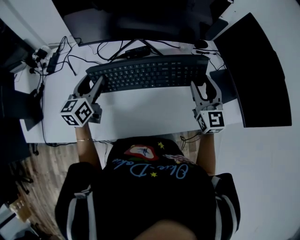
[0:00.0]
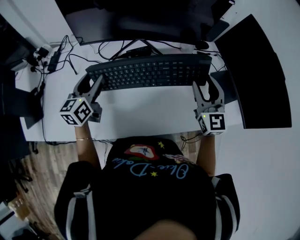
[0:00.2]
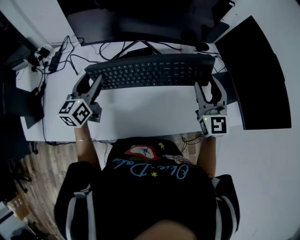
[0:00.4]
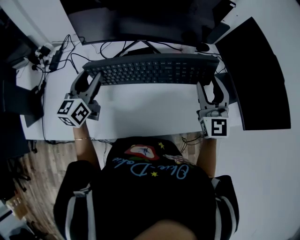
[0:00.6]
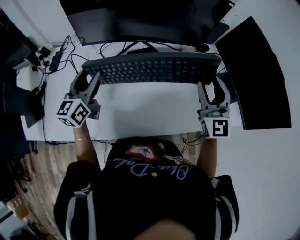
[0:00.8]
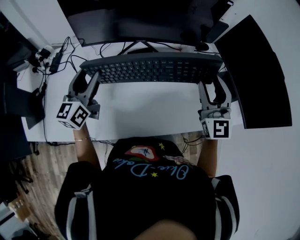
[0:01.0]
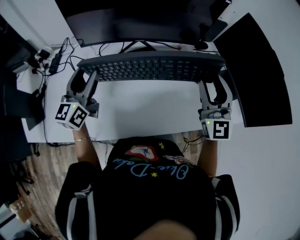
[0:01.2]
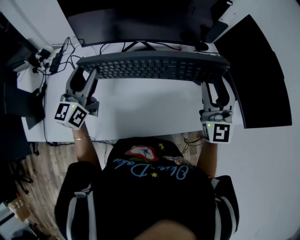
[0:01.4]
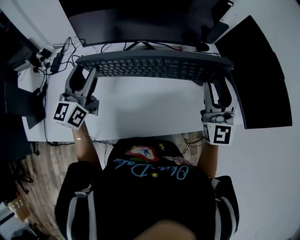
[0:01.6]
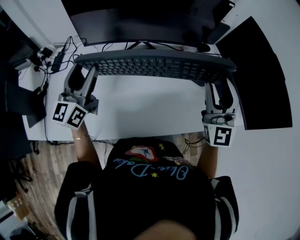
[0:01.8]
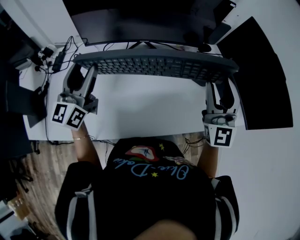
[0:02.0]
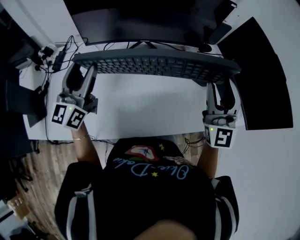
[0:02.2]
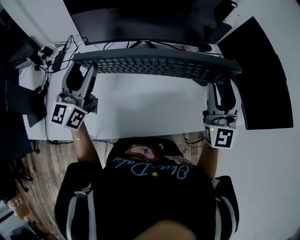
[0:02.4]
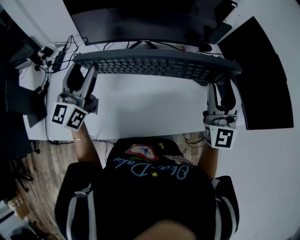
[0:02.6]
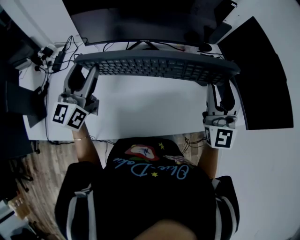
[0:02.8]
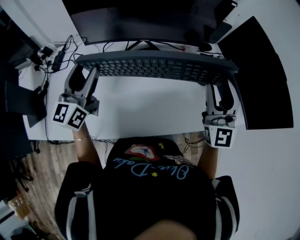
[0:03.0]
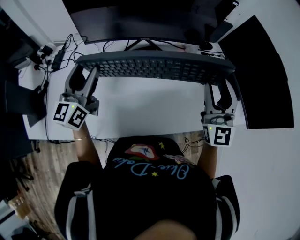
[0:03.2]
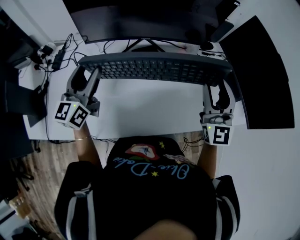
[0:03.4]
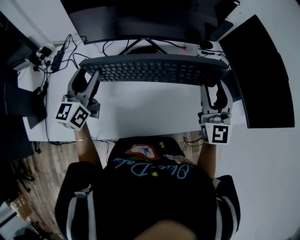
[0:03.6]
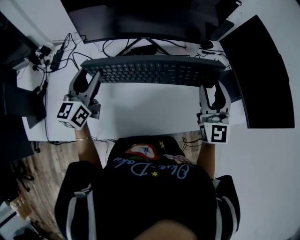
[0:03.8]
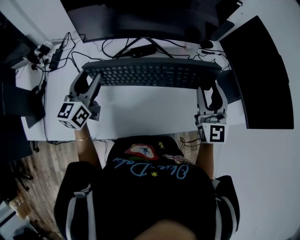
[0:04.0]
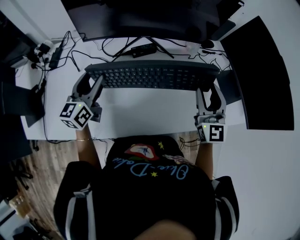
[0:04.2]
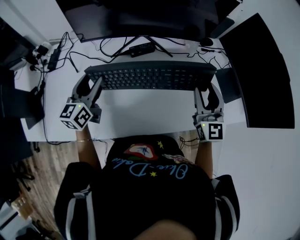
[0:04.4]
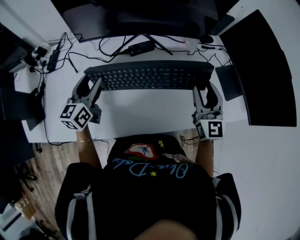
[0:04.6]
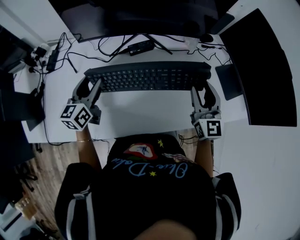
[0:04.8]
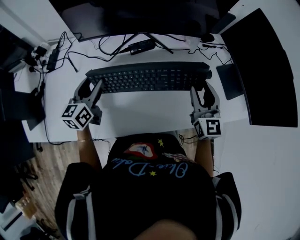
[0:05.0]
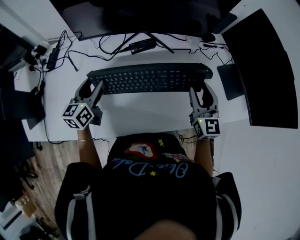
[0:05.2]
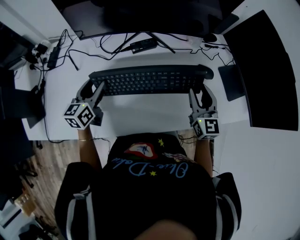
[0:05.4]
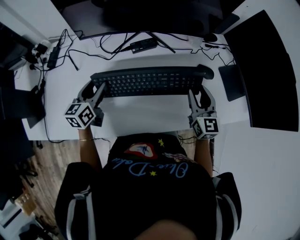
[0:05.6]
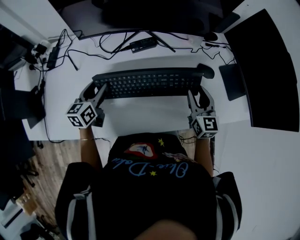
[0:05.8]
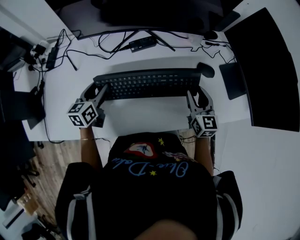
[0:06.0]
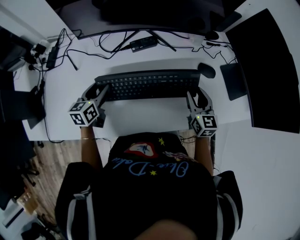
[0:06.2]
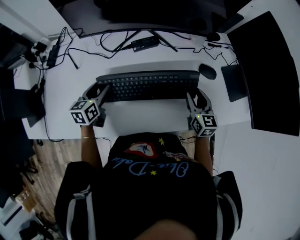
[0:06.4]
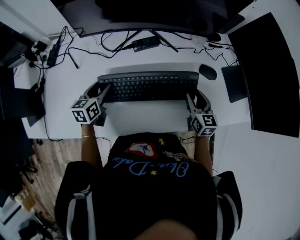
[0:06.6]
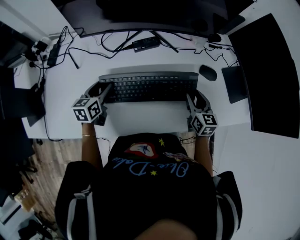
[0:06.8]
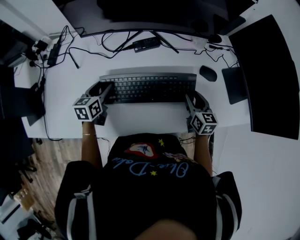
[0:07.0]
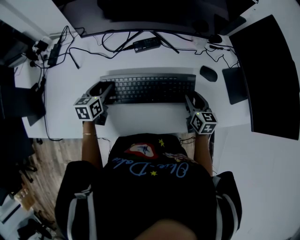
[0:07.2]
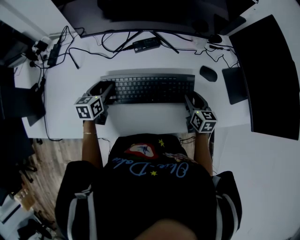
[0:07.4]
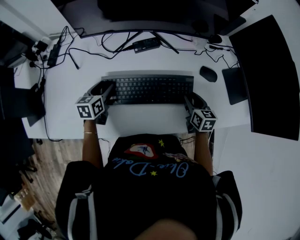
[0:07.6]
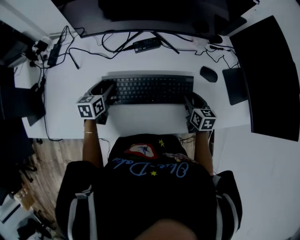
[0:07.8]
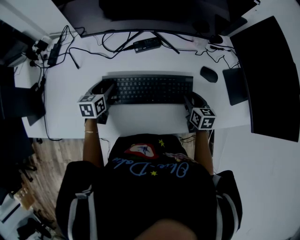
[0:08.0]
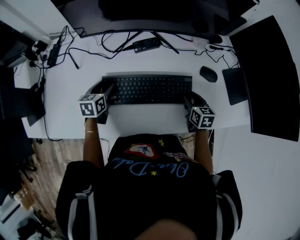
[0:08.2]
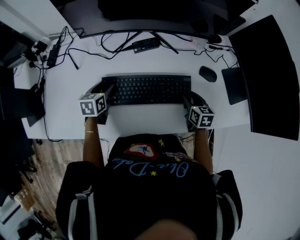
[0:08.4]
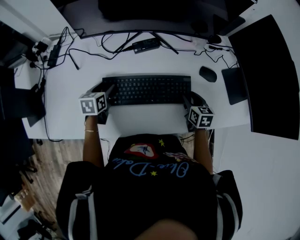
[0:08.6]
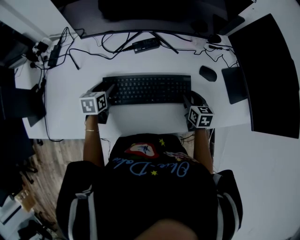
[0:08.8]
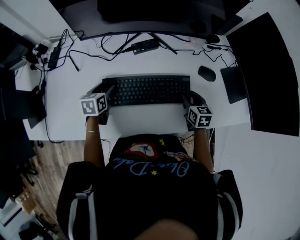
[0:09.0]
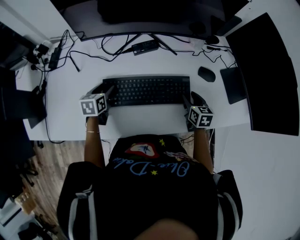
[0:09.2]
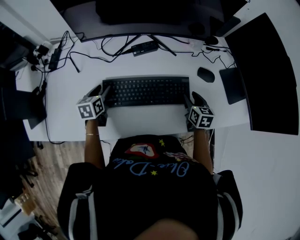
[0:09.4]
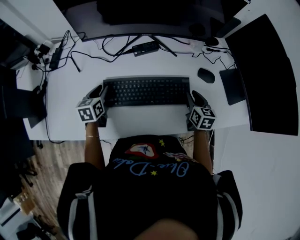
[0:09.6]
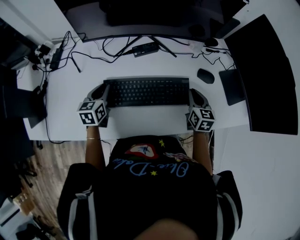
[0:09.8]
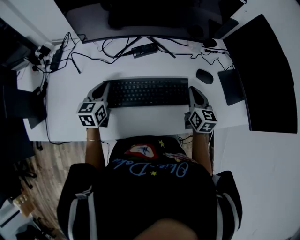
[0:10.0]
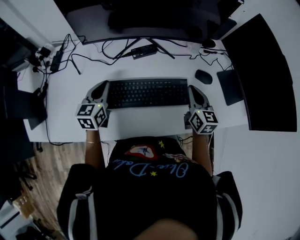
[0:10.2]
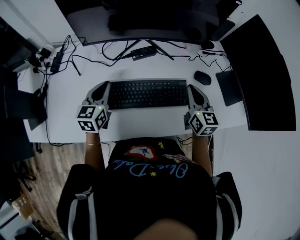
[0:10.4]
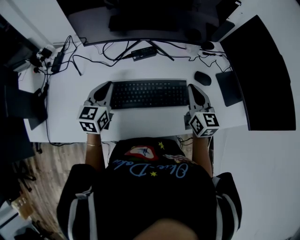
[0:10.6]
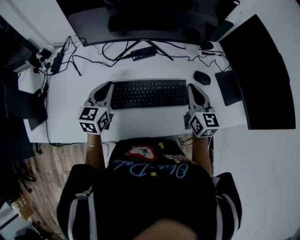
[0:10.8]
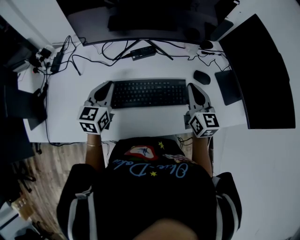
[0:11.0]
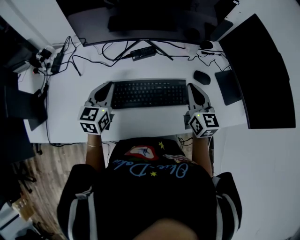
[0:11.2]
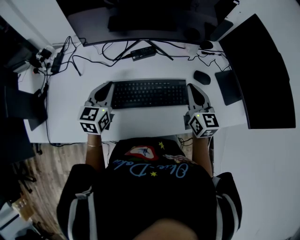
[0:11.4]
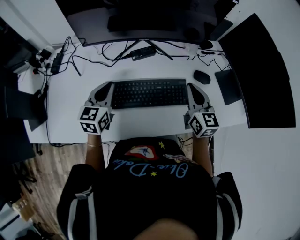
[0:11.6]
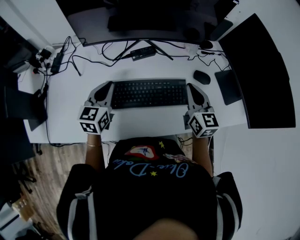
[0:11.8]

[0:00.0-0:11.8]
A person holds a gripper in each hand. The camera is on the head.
0:00.0 to 0:01.4: The grippers both shift upward by some 10 cm. The left gripper rotates some 20 degrees. Meanwhile the right gripper rotates approximately 20 degrees.
0:01.4 to 0:03.0: There are only small adjustments of the grippers.
0:03.0 to 0:04.4: Both grippers travel together downward, about 10 cm.
0:04.4 to 0:06.0: The grippers both shift downward by some 10 cm. The right gripper swivels some 20 degrees.
0:06.0 to 0:07.4: The left gripper ends up approximately 5 cm from where it was. Meanwhile the right gripper shifts approximately 10 cm downward, and rotates about 20 degrees.
0:07.4 to 0:08.8: There are only small adjustments of the grippers.
0:08.8 to 0:10.4: Both grippers travel together upward, approximately 15 cm. The left gripper turns by some 30 degrees, and closes up. Meanwhile the right gripper changes its angle by approximately 30 degrees, and closes up.
0:10.4 to 0:11.8: The grippers stay close to where they were, moving slightly.

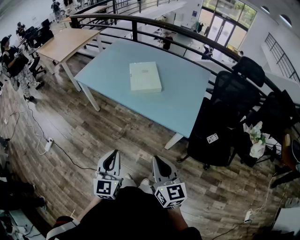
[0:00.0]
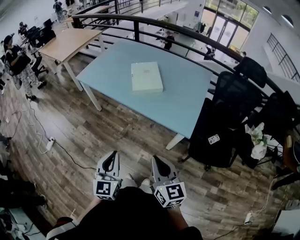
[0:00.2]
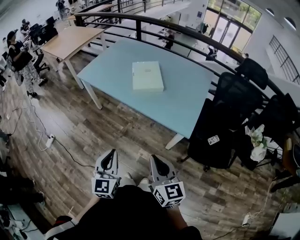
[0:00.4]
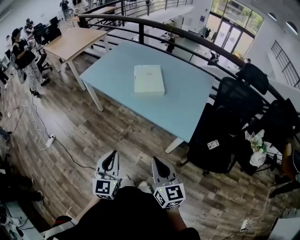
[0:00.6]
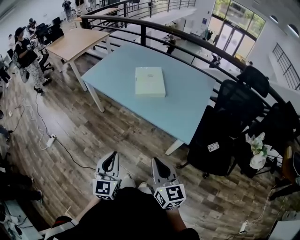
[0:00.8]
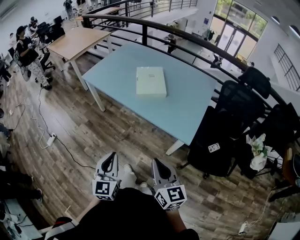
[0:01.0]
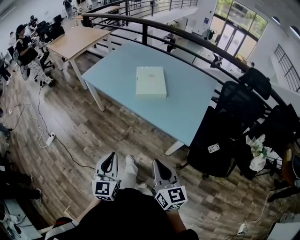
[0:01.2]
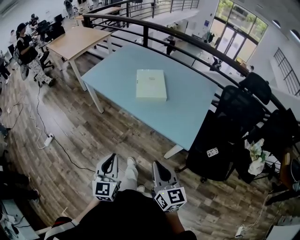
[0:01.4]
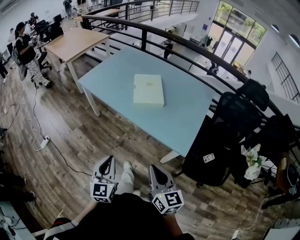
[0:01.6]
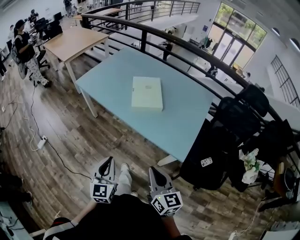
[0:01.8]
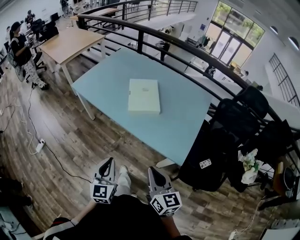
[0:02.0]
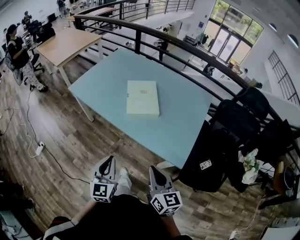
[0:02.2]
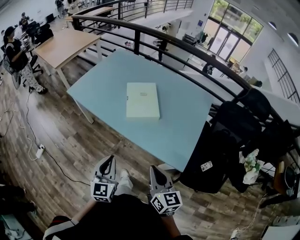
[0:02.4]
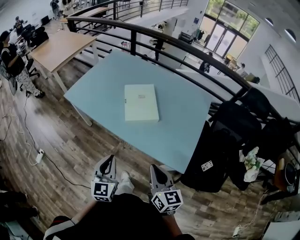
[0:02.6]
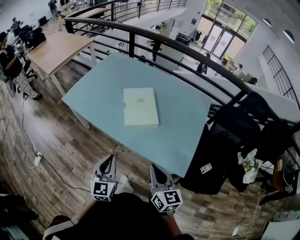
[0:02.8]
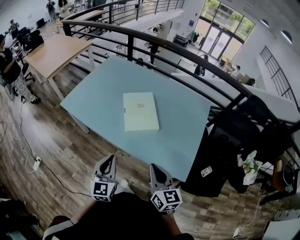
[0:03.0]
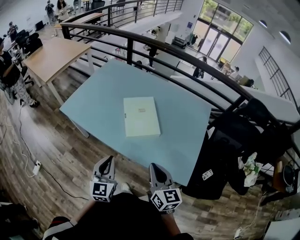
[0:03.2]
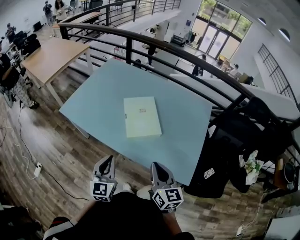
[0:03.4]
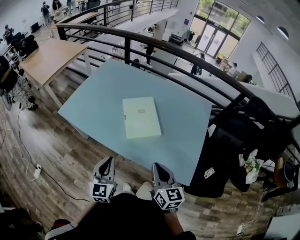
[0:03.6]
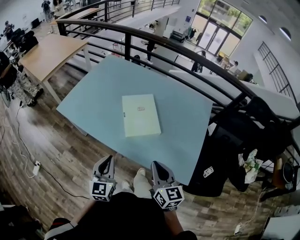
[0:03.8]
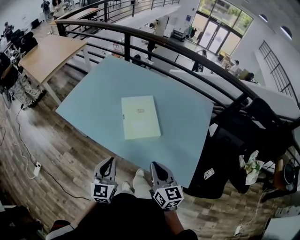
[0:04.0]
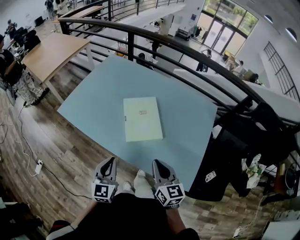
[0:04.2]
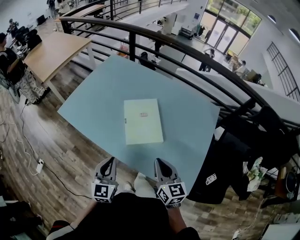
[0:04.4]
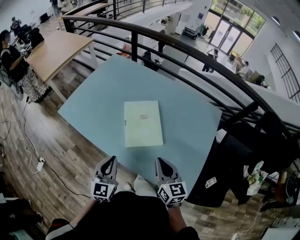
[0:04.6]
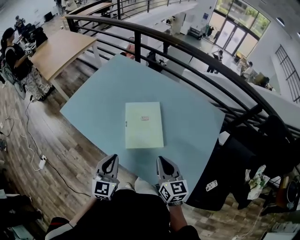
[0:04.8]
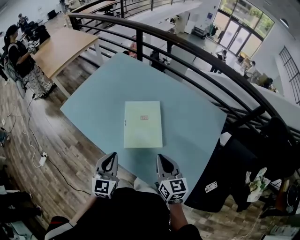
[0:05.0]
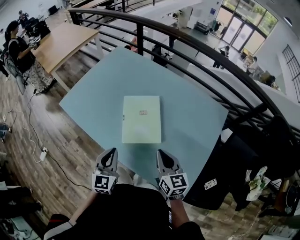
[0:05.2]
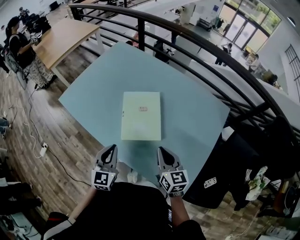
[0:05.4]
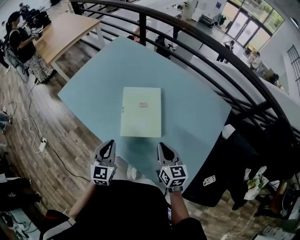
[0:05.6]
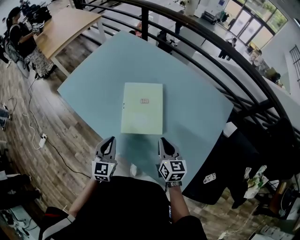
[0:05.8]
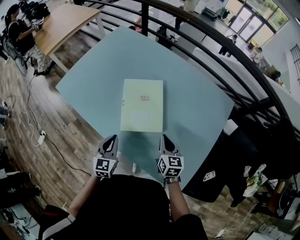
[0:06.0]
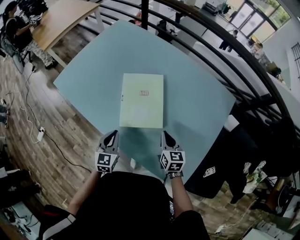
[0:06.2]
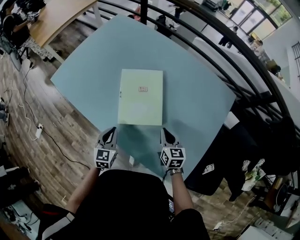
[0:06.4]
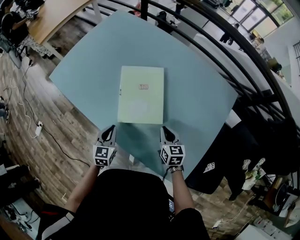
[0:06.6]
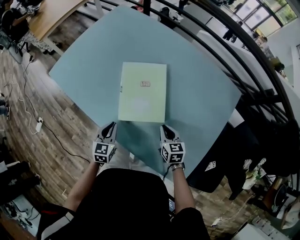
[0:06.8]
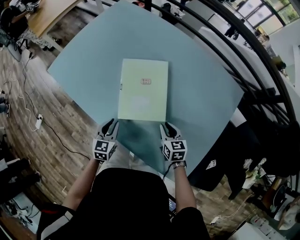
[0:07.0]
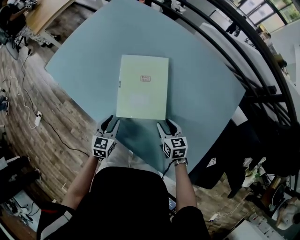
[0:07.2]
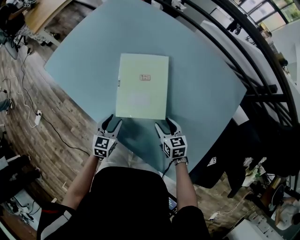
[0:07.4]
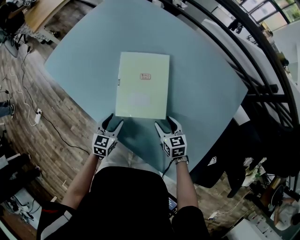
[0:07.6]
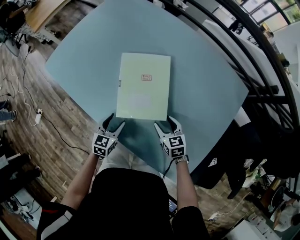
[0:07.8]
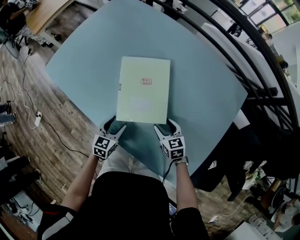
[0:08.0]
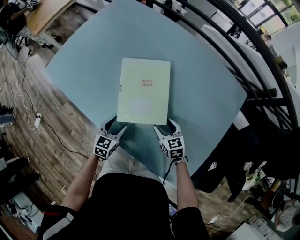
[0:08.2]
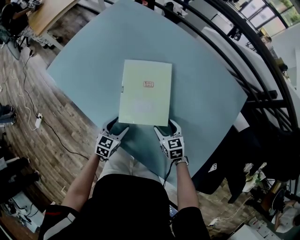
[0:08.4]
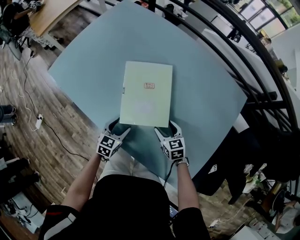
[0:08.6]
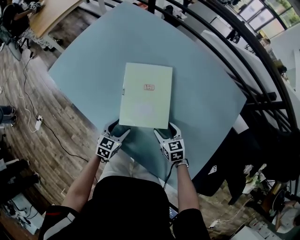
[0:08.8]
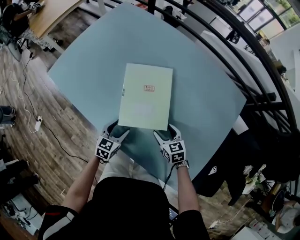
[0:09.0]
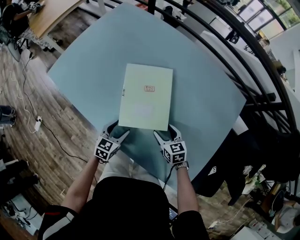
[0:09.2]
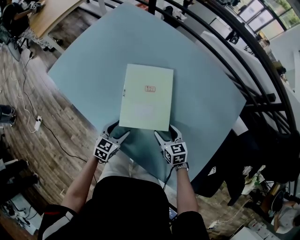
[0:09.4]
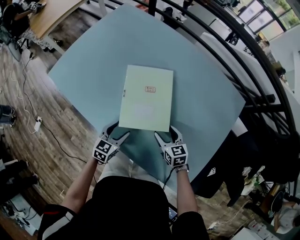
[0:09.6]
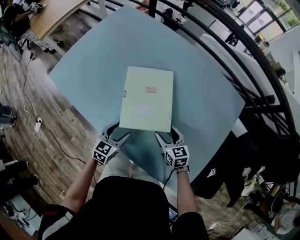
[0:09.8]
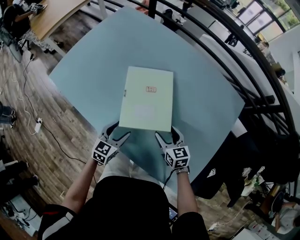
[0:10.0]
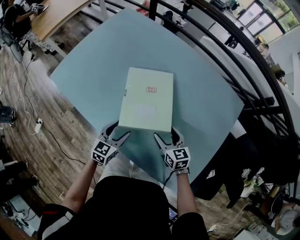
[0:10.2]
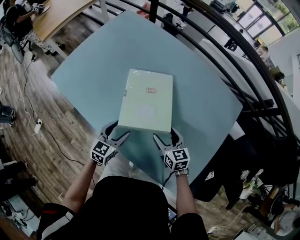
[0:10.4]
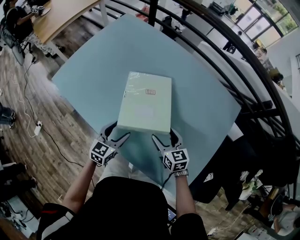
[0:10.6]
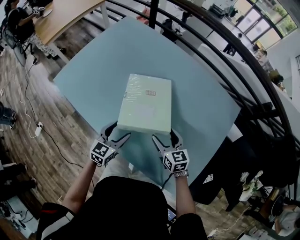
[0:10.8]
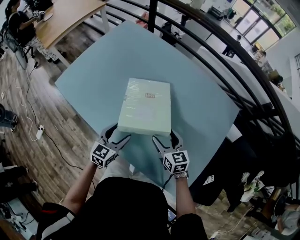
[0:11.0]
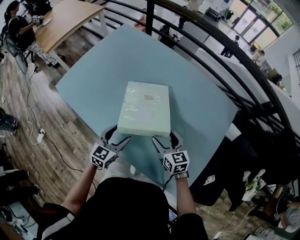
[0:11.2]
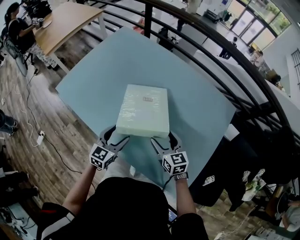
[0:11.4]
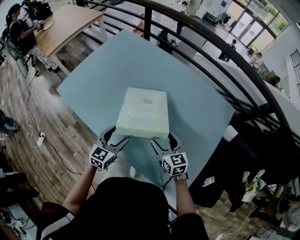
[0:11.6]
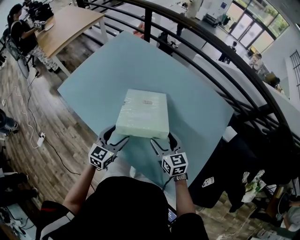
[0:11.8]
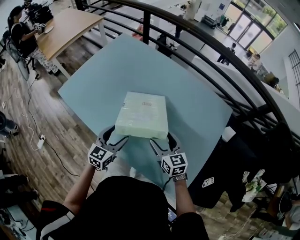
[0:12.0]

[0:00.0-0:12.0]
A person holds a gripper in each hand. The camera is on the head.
0:00.0 to 0:01.6: The right gripper moves roughly 5 cm.
0:01.6 to 0:03.0: The grippers both shift forward by roughly 20 cm.
0:03.0 to 0:04.4: Both grippers travel together forward, roughly 10 cm.
0:04.4 to 0:06.0: The left gripper moves downward and forward, approximately 15 cm. Meanwhile the right gripper travels downward, forward and to the right by some 20 cm.
0:06.0 to 0:07.6: Both grippers move downward, approximately 15 cm. The left gripper opens; the right gripper swivels approximately 20 degrees, and opens up.
0:07.6 to 0:09.0: The grippers stay close to where they were, moving slightly.
0:09.0 to 0:10.4: The two grippers go some 10 cm upward.
0:10.4 to 0:12.0: Both grippers travel together upward, about 10 cm.
